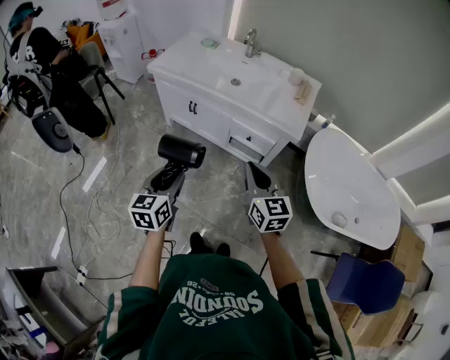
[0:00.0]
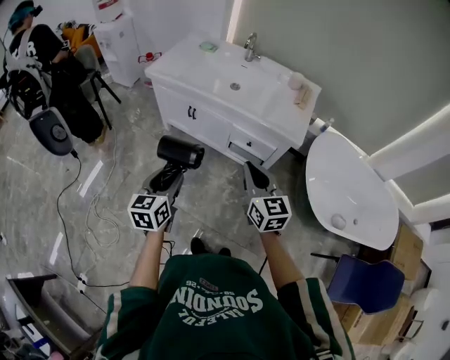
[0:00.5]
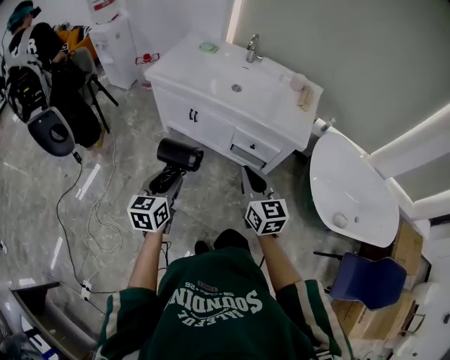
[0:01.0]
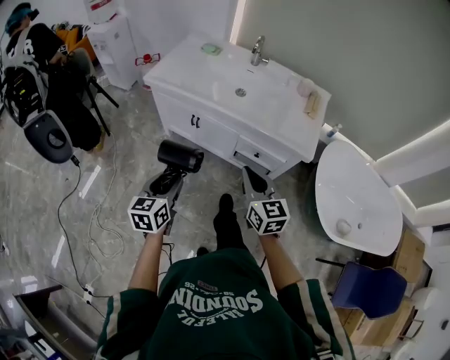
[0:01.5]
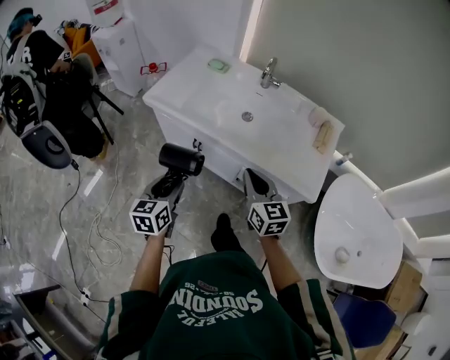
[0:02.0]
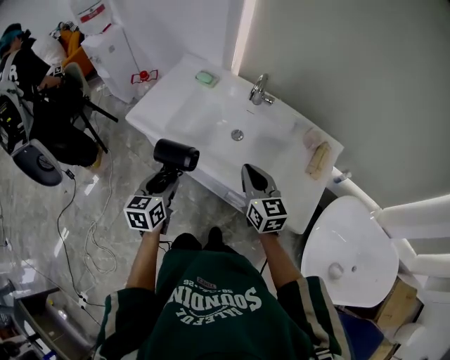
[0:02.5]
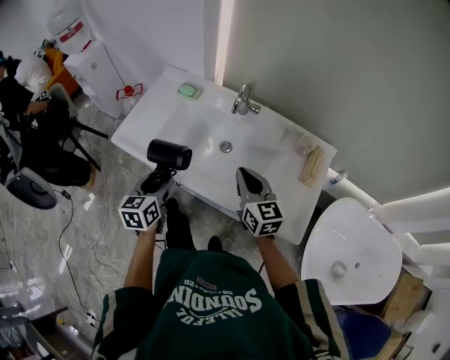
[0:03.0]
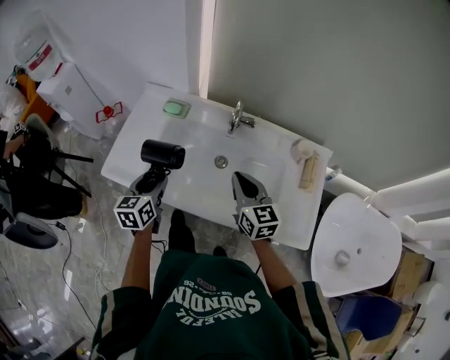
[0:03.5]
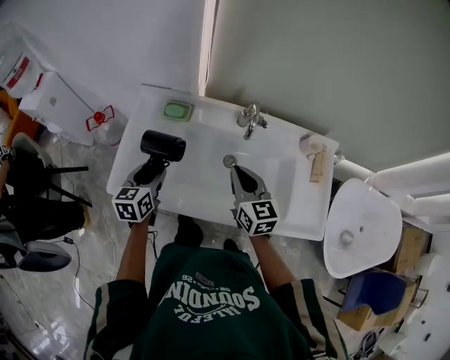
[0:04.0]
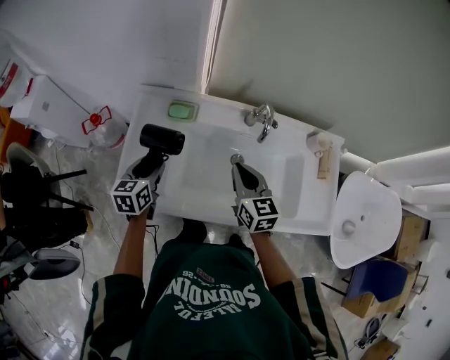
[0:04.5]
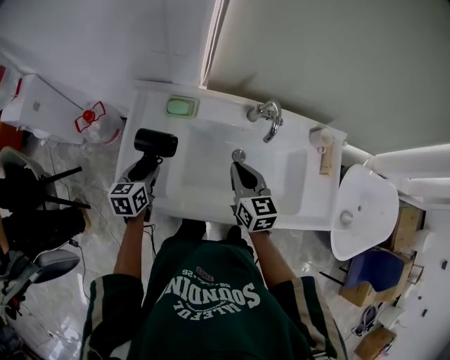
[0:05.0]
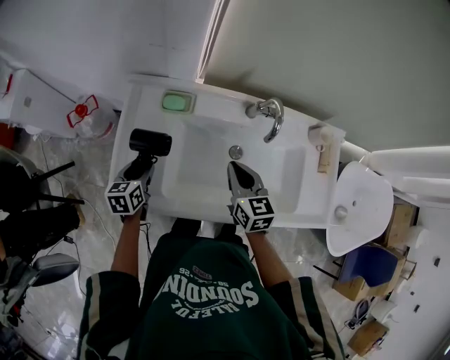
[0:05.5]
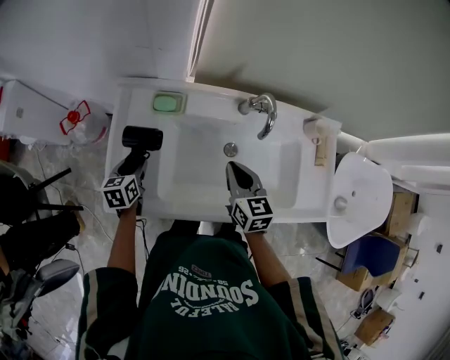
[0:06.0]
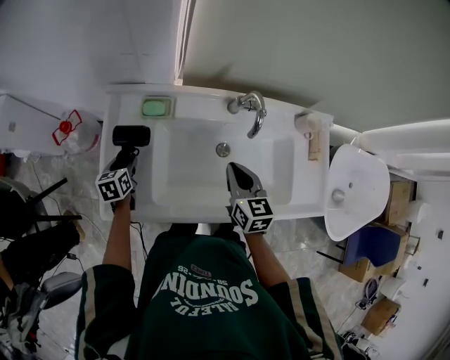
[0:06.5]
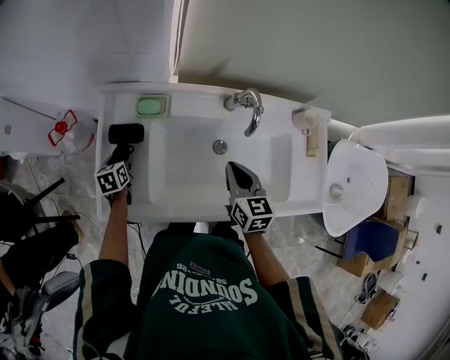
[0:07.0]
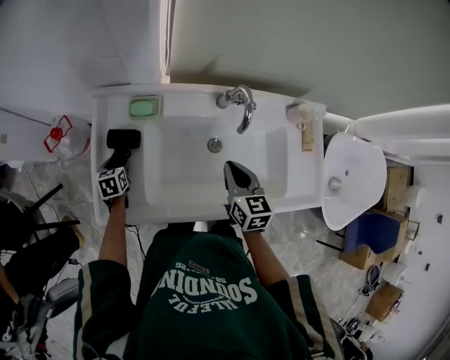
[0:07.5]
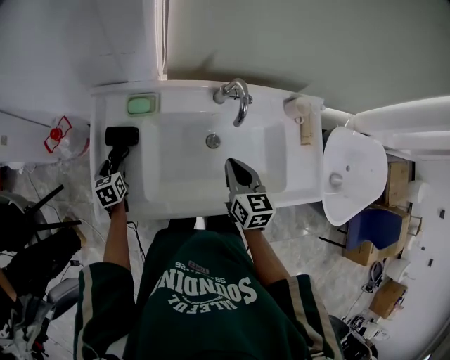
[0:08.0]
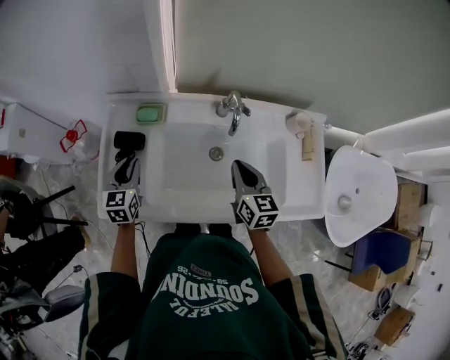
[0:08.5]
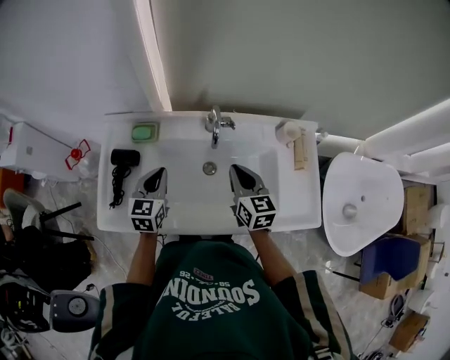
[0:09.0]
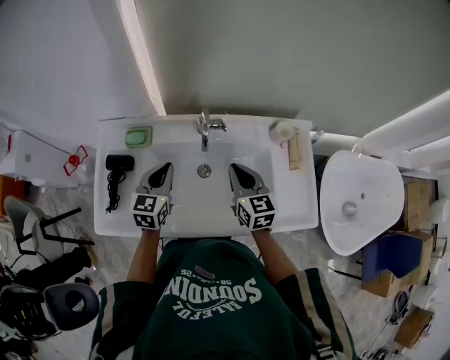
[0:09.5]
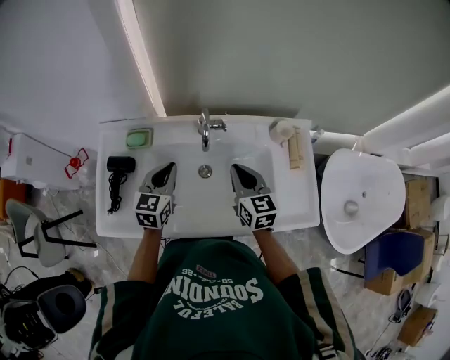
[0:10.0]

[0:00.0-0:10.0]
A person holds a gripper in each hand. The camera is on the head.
0:00.0 to 0:02.0: The grippers both shift forward by roughly 30 cm.
0:02.0 to 0:04.0: The two grippers go approximately 40 cm forward.
0:04.0 to 0:06.0: The left gripper goes some 20 cm downward, to the left and forward. The right gripper heads downward, covering roughly 5 cm.
0:06.0 to 0:08.0: The right gripper travels to the right by about 5 cm. Meanwhile the left gripper moves downward, about 5 cm.
0:08.0 to 0:10.0: The right gripper heads to the right, covering roughly 10 cm, while the left gripper moves to the right and upward, some 35 cm, swivels roughly 40 degrees, and closes.

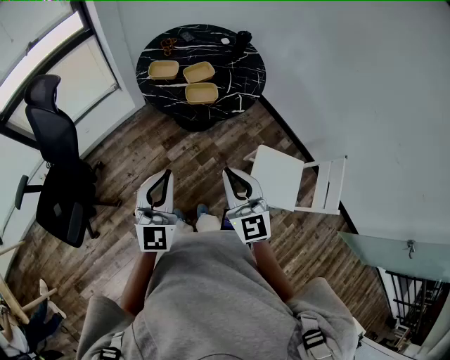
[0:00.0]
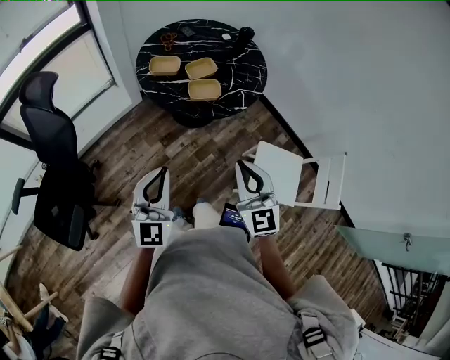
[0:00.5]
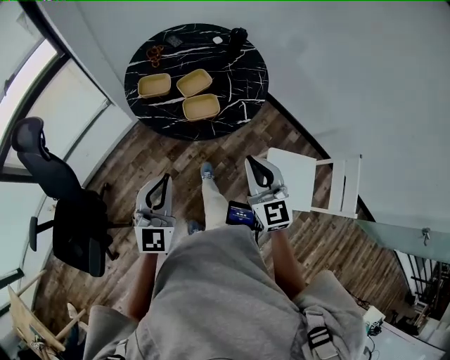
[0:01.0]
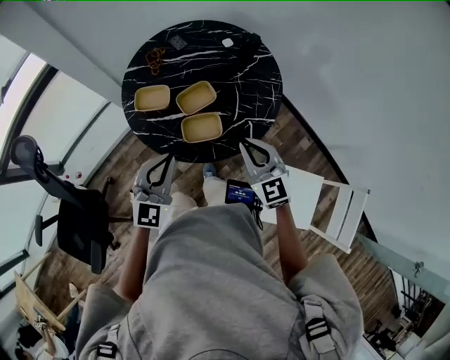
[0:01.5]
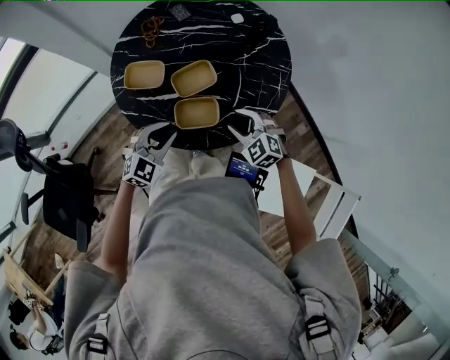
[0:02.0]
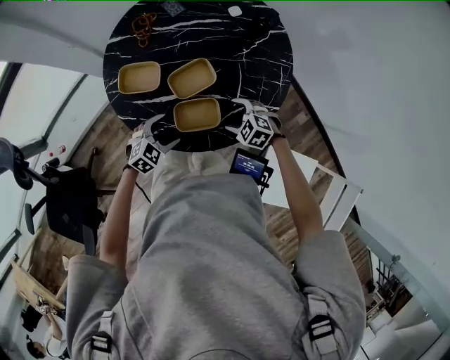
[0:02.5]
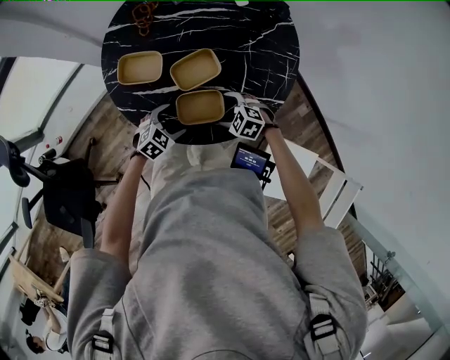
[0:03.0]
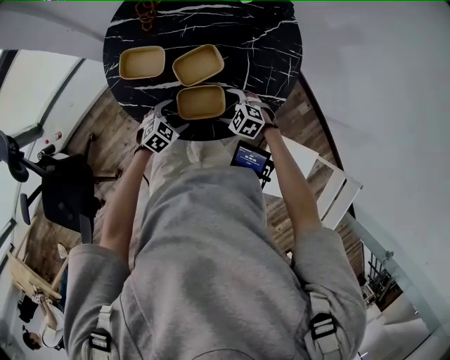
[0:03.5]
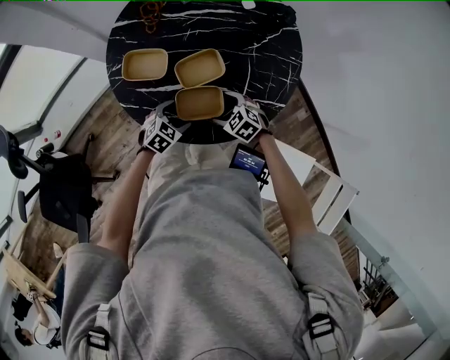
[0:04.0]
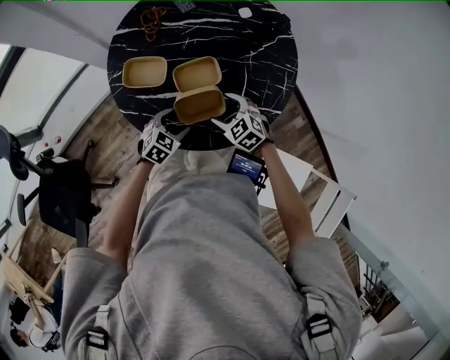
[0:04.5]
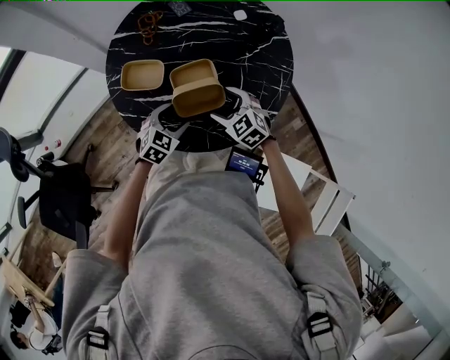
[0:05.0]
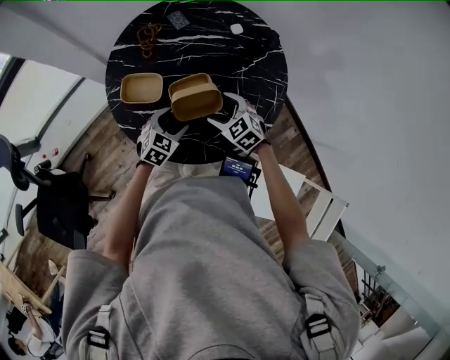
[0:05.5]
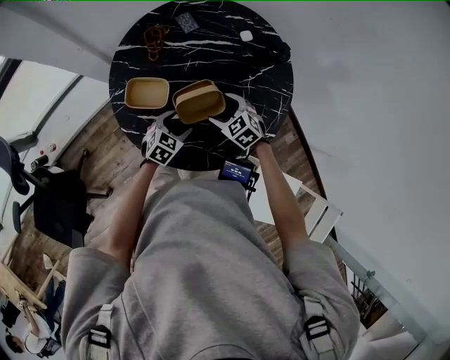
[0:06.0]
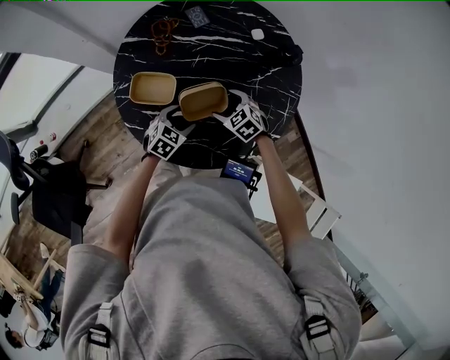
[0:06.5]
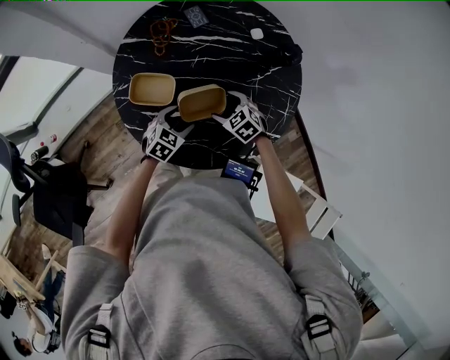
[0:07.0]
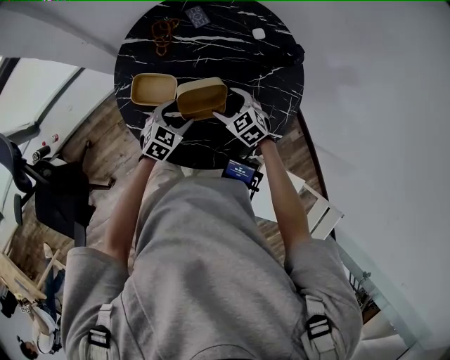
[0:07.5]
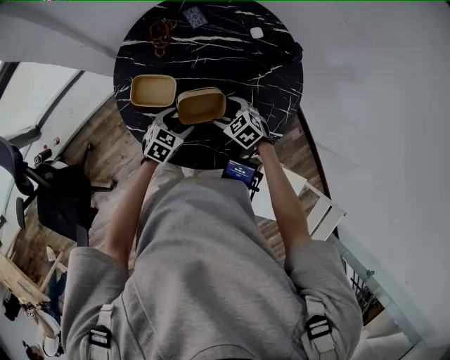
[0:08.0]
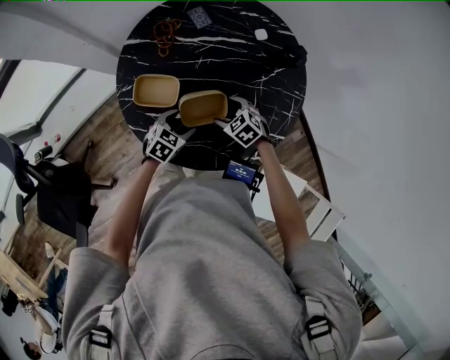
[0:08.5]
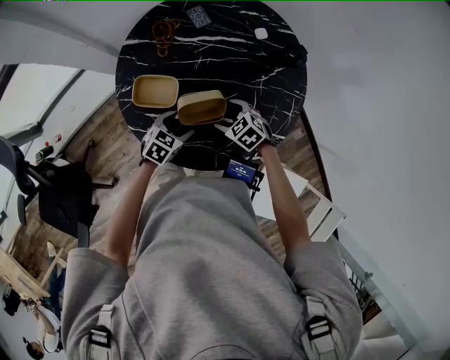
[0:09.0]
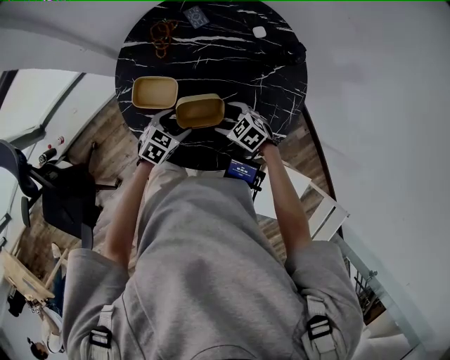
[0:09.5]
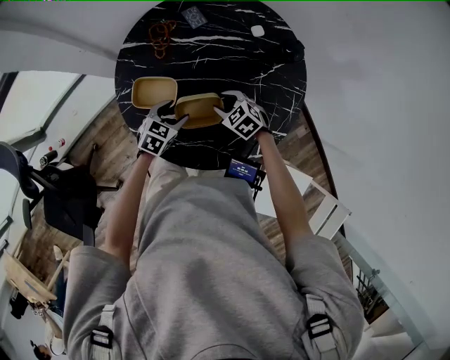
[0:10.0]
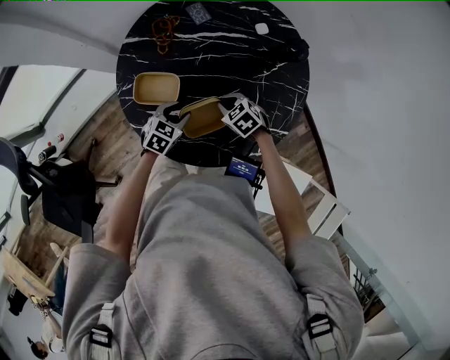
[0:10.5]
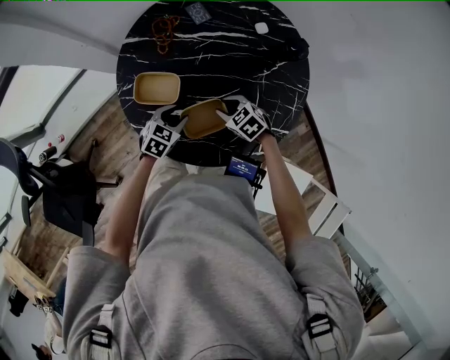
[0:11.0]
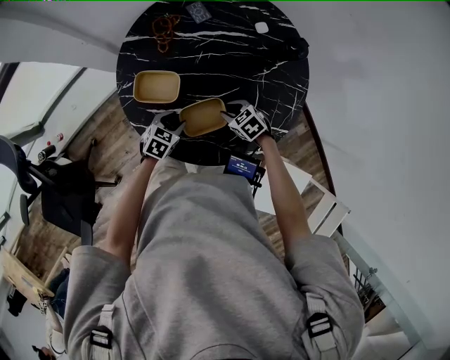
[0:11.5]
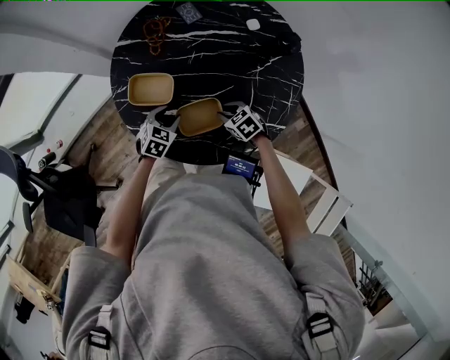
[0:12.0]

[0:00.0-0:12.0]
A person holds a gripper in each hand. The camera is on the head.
0:00.0 to 0:02.0: Both grippers are carried forward, some 40 cm. The grippers both shift downward by some 25 cm. The right gripper tilts its fingers approximately 40 degrees downward, and opens its fingers; the left gripper rotates approximately 40 degrees.
0:02.0 to 0:04.0: Both grippers move downward, some 15 cm. The left gripper rotates about 30 degrees, and opens its fingers. The right gripper turns by about 20 degrees, and opens.
0:04.0 to 0:06.0: The left gripper shifts some 10 cm forward, while the right gripper shifts roughly 15 cm forward and upward.
0:06.0 to 0:08.0: The grippers move only a little.
0:08.0 to 0:10.0: The right gripper closes its fingers.
0:10.0 to 0:12.0: The right gripper travels backward by roughly 5 cm.

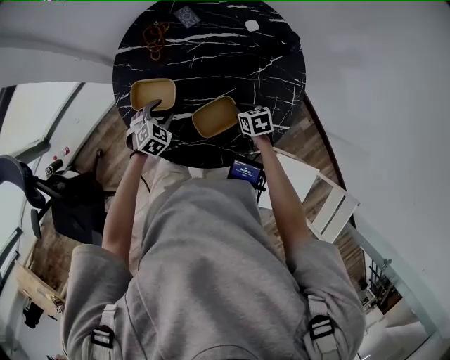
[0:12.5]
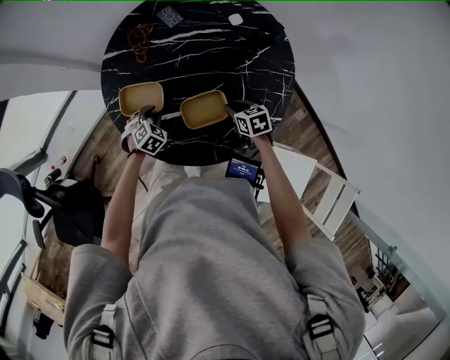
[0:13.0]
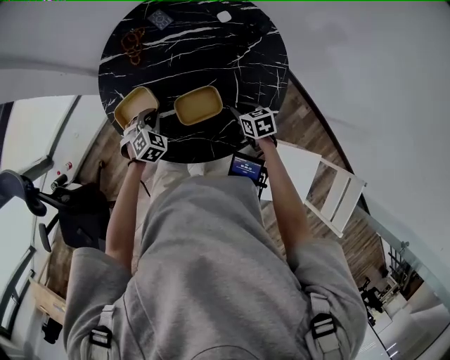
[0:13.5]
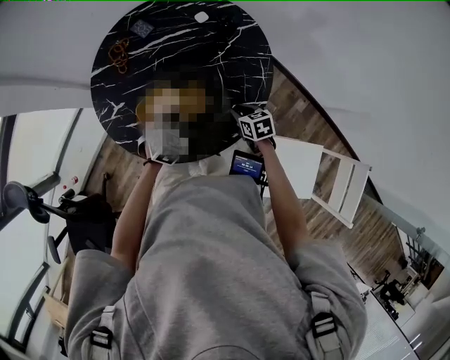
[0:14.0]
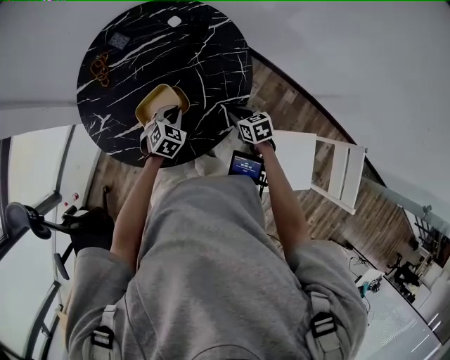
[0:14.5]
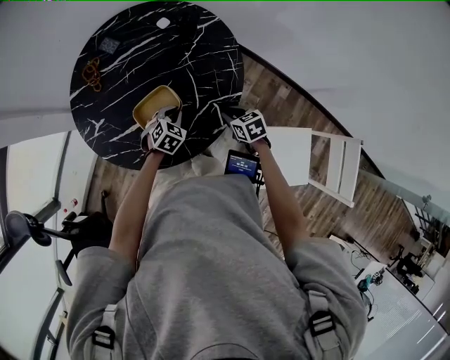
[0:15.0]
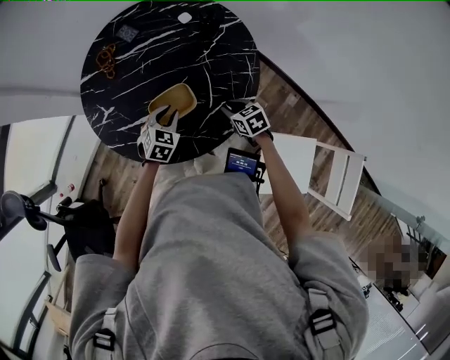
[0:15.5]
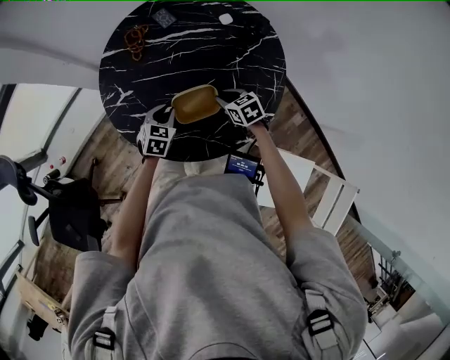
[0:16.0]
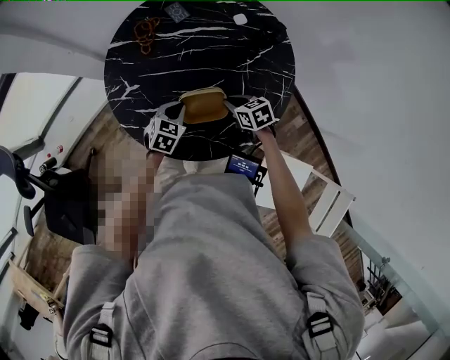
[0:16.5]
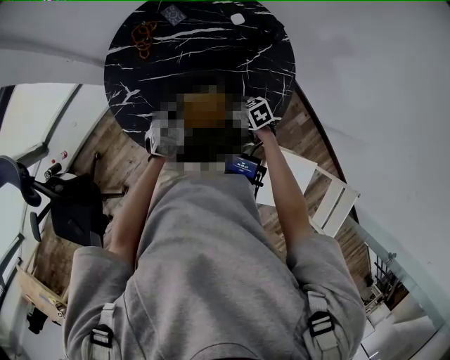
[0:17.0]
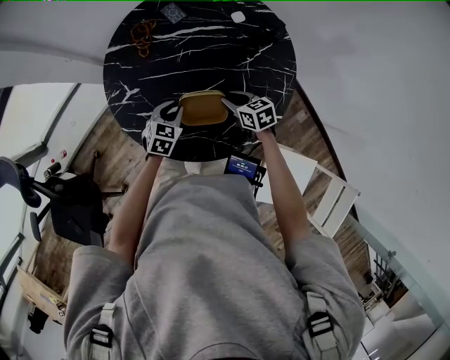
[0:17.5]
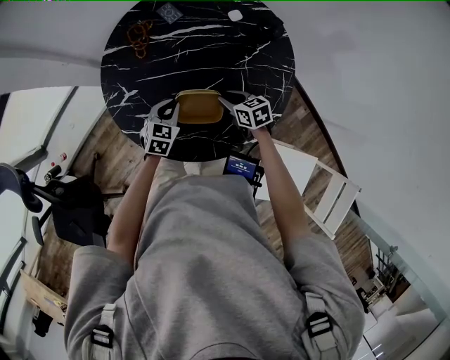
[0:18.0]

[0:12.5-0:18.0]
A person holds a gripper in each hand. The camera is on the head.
0:12.5 to 0:14.5: The left gripper is displaced to the right by approximately 20 cm, and closes up. The right gripper is displaced to the right and backward by some 20 cm.
0:14.5 to 0:16.0: The left gripper moves to the left, approximately 15 cm, and changes its angle by approximately 30 degrees; the right gripper shifts some 20 cm to the left and forward, and changes its angle by about 20 degrees.
0:16.0 to 0:18.0: There are only small adjustments of the grippers.
